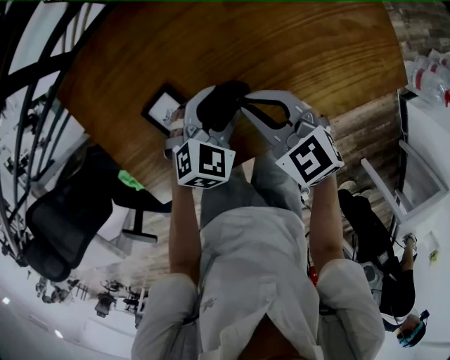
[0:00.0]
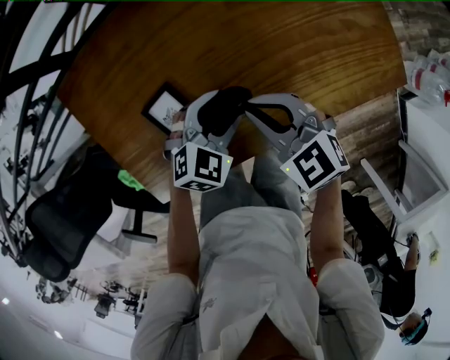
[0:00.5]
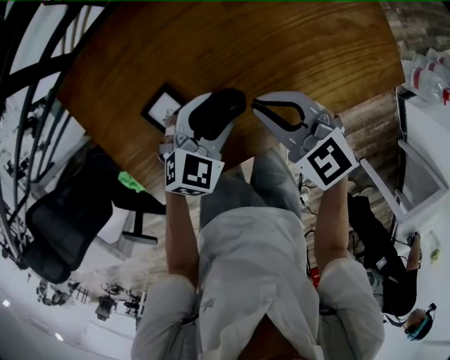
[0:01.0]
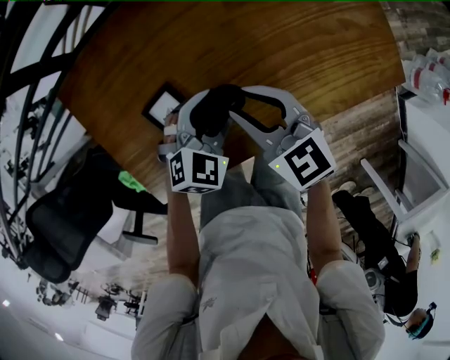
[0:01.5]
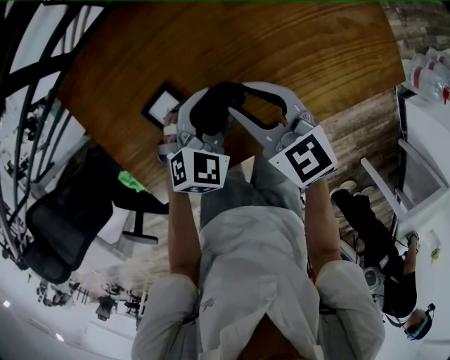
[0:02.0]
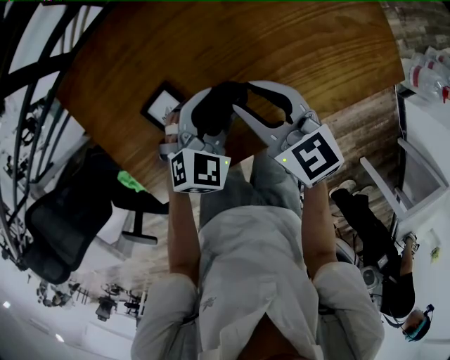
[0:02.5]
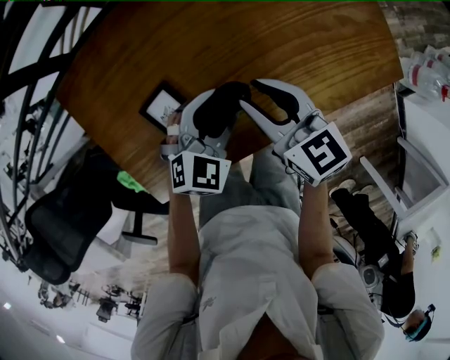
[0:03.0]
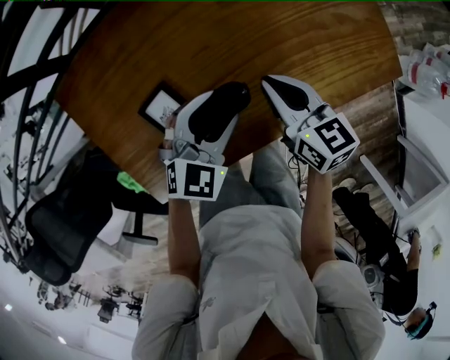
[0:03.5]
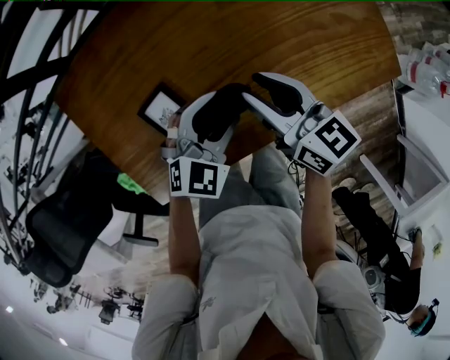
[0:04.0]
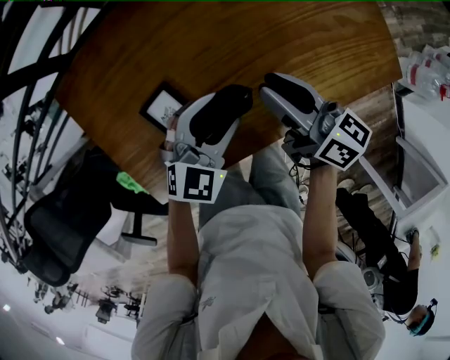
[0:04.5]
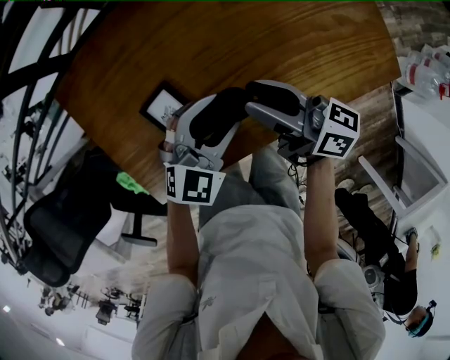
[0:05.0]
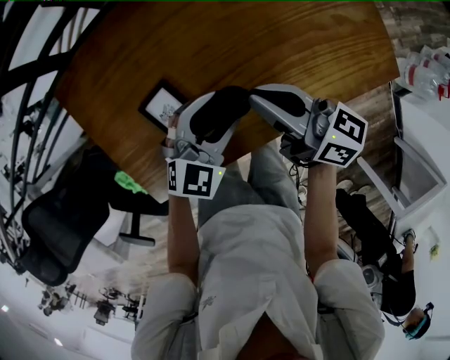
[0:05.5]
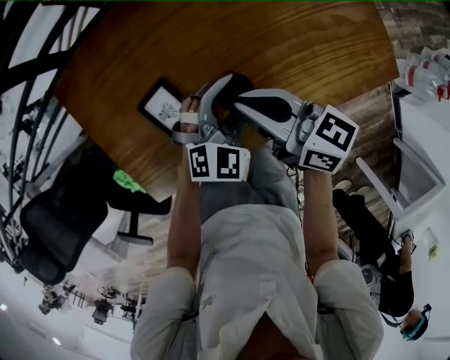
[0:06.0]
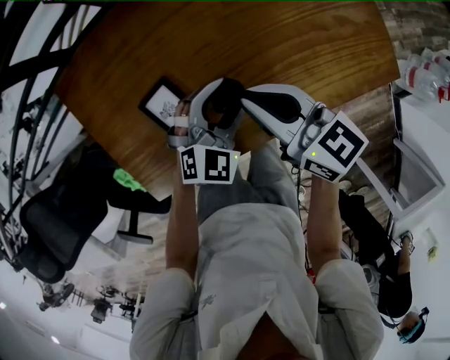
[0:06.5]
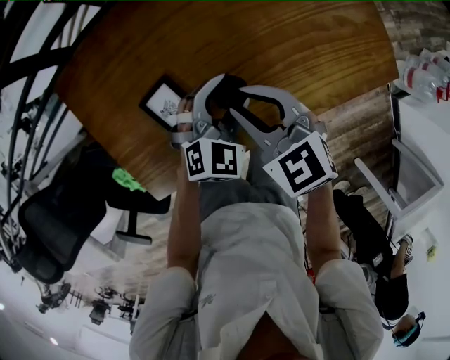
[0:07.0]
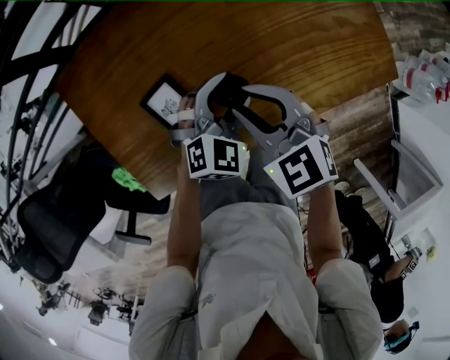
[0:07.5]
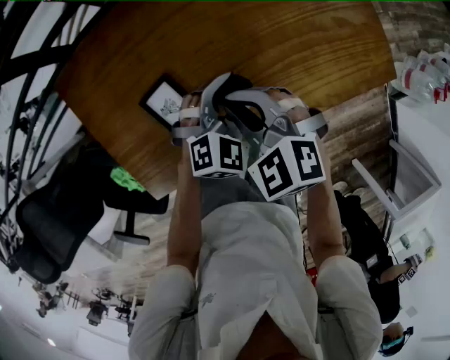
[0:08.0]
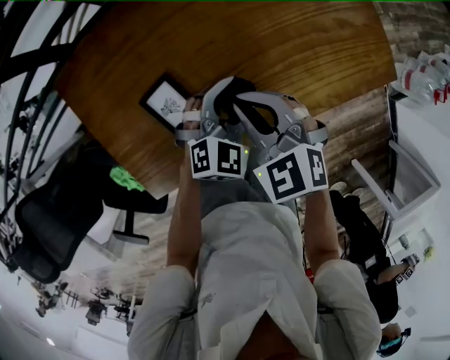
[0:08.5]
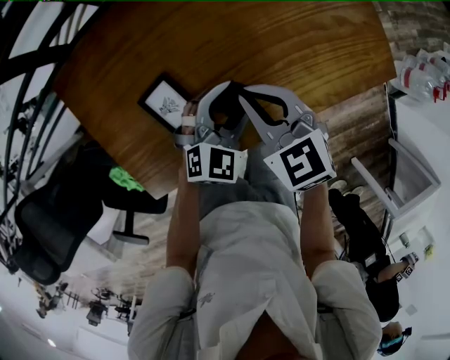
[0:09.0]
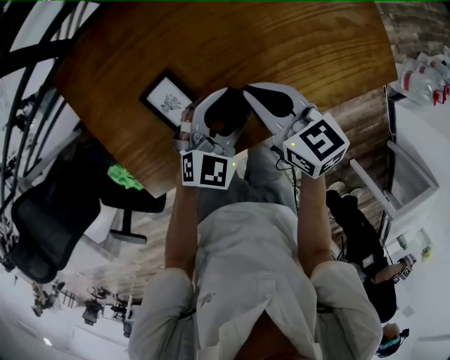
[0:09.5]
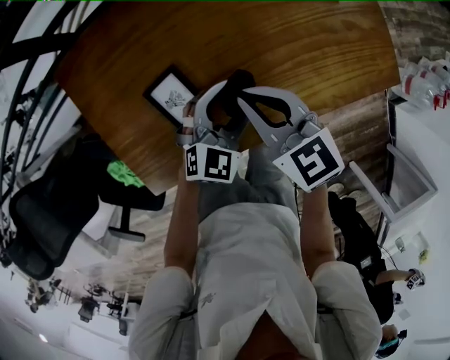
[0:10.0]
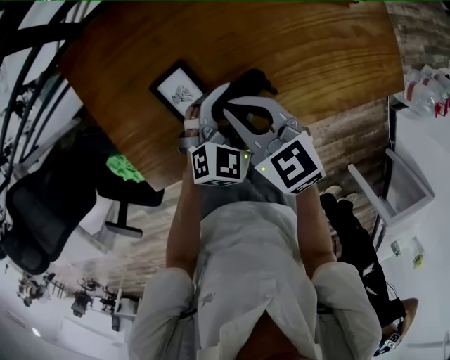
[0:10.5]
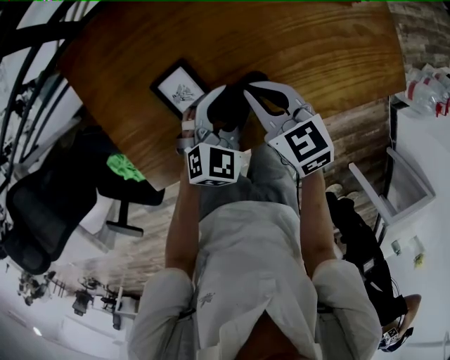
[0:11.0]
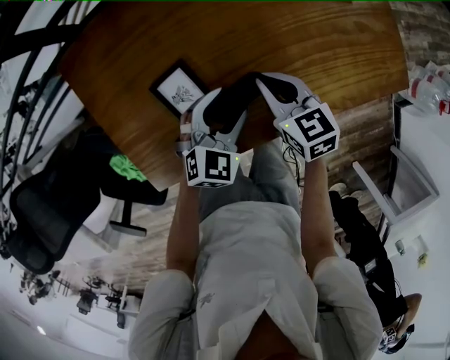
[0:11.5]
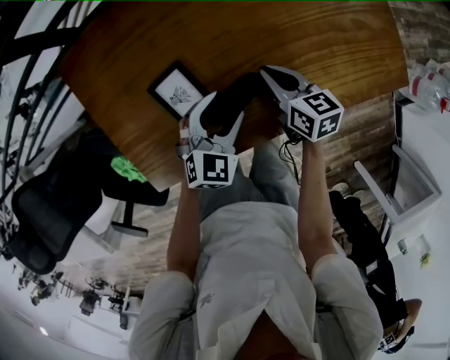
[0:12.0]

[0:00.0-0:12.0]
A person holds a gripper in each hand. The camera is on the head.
0:00.0 to 0:02.0: The right gripper opens up.
0:02.0 to 0:04.0: The right gripper rotates some 30 degrees, and closes, then opens again.
0:04.0 to 0:06.0: The right gripper moves approximately 5 cm, and closes up.
0:06.0 to 0:08.0: The right gripper rotates around the line of its fingers by roughly 60 degrees, counterclockwise from behind, and opens, then closes once more.
0:08.0 to 0:10.0: The right gripper rotates roughly 30 degrees.
0:10.0 to 0:12.0: The right gripper travels downward and to the right by about 15 cm, and turns by roughly 30 degrees. Meanwhile the left gripper moves some 5 cm.

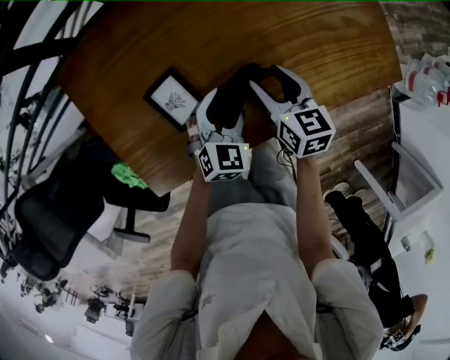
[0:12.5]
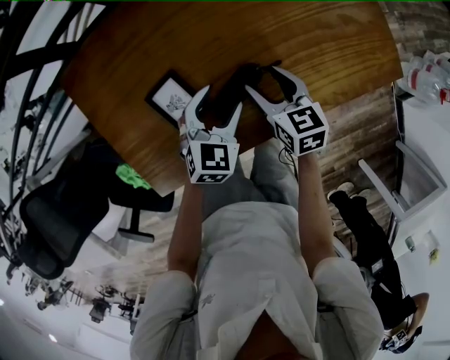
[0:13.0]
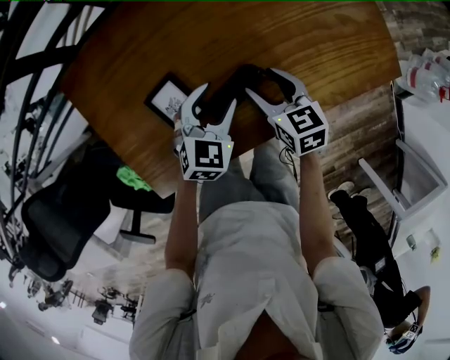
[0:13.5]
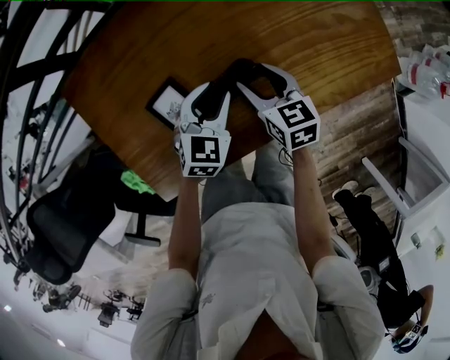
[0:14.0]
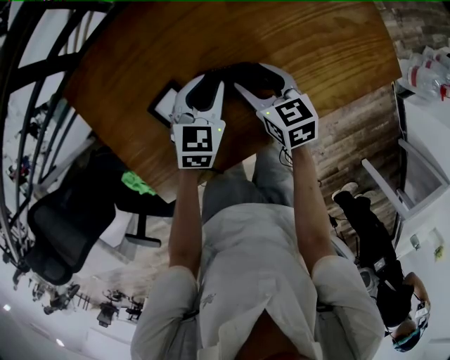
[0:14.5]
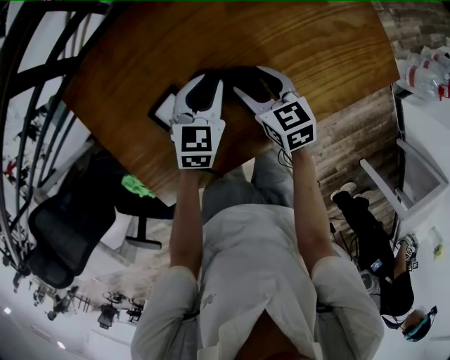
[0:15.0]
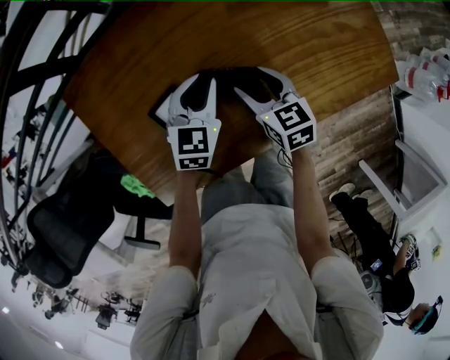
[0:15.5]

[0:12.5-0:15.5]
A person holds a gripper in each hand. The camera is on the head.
0:12.5 to 0:14.0: The left gripper closes its fingers.
0:14.0 to 0:15.5: The left gripper moves forward, roughly 5 cm.

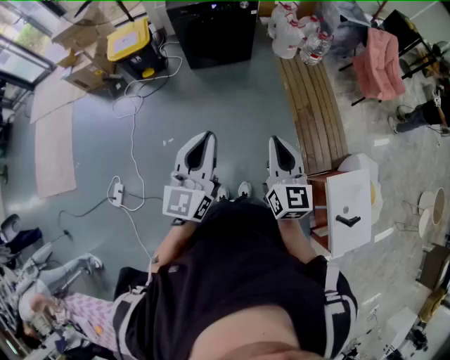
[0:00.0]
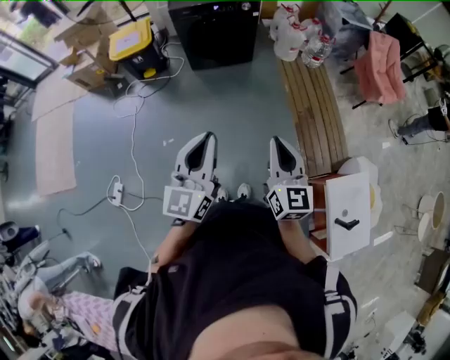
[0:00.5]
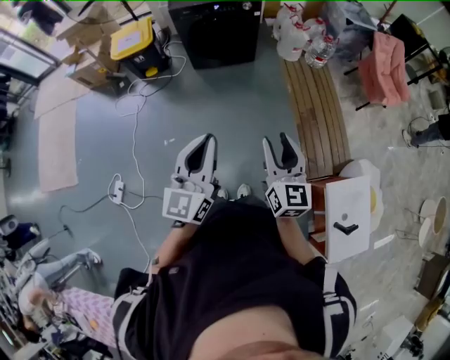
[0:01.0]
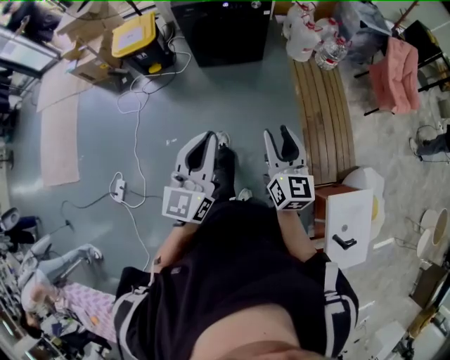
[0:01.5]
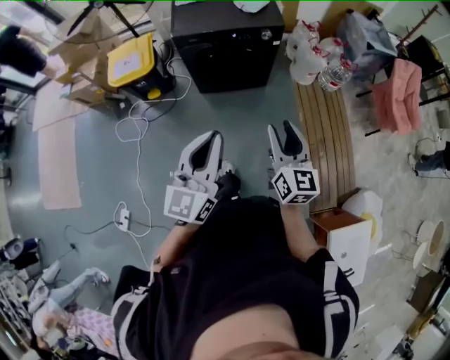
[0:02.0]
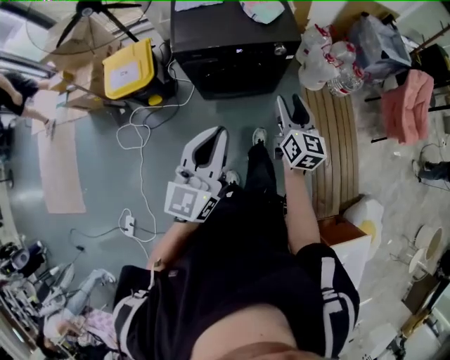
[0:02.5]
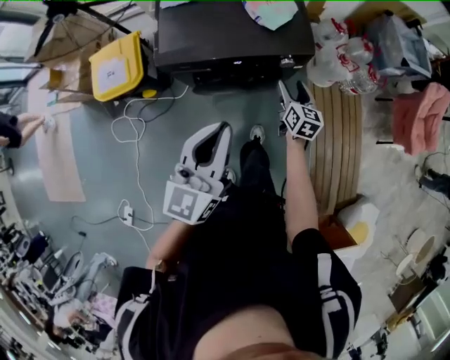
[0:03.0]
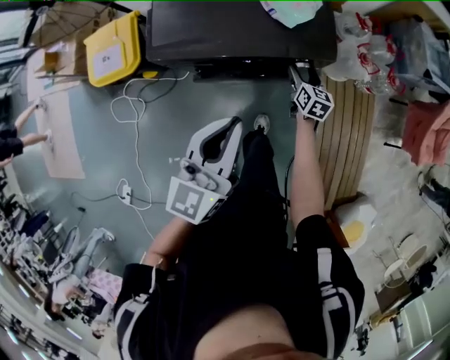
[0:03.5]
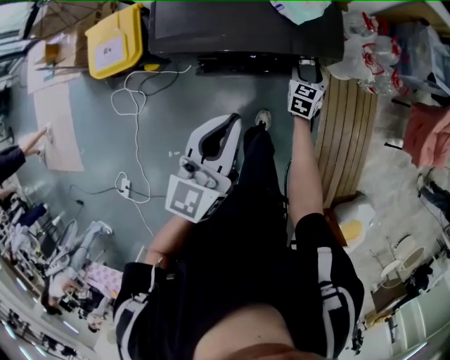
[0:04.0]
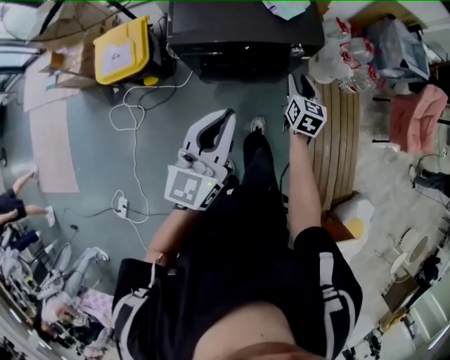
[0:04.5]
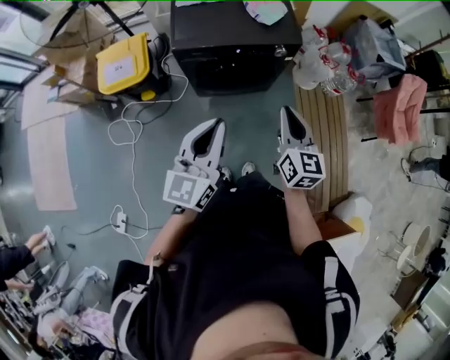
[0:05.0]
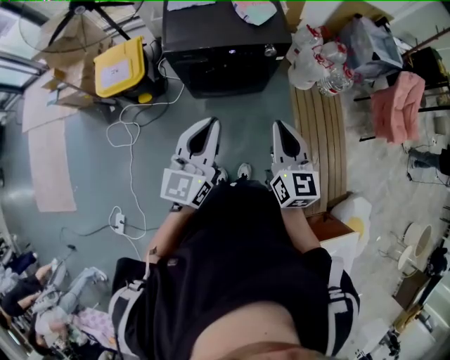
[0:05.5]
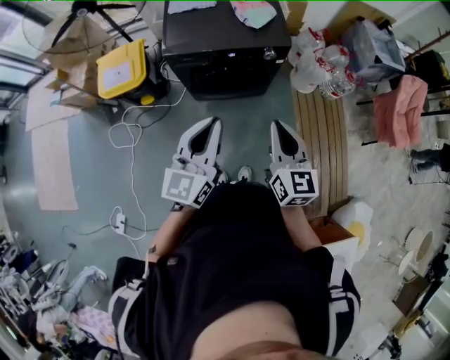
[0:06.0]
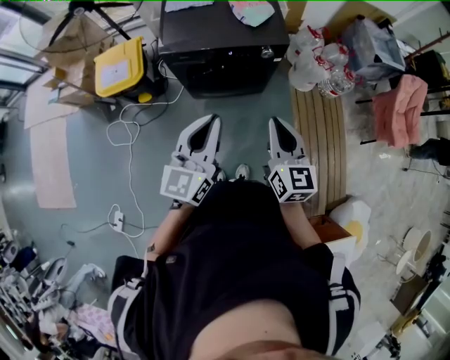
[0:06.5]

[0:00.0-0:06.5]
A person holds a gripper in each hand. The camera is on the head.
0:00.0 to 0:02.0: The two grippers travel together, forward, roughly 50 cm. The right gripper opens.
0:02.0 to 0:04.5: The two grippers travel together, forward, roughly 50 cm. The right gripper moves downward, about 25 cm, swivels about 20 degrees, and opens, then closes again.
0:04.5 to 0:06.5: The left gripper heads backward, upward and to the right, covering roughly 15 cm. Meanwhile the right gripper shifts about 35 cm backward and upward, swivels some 20 degrees, and closes its fingers.

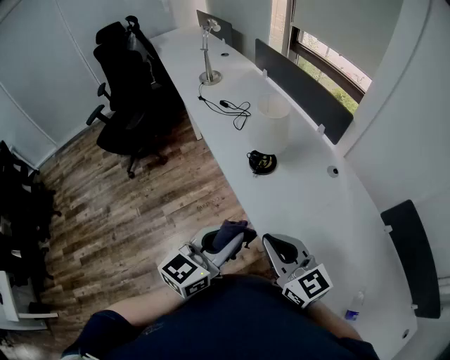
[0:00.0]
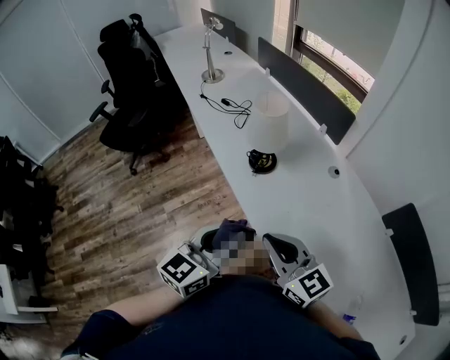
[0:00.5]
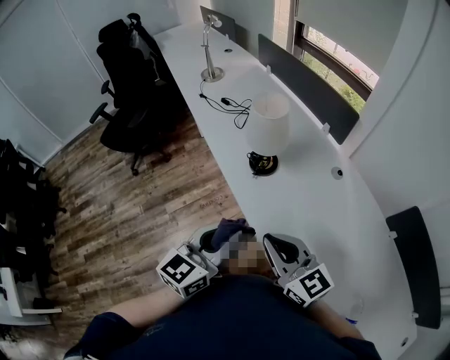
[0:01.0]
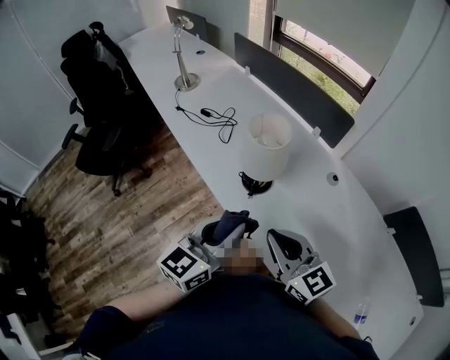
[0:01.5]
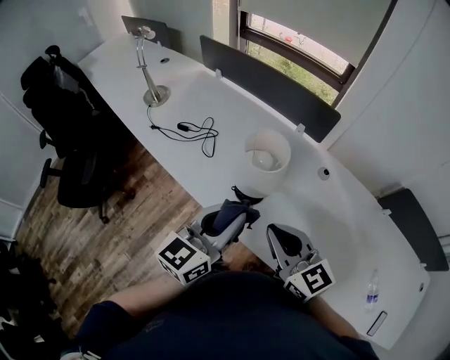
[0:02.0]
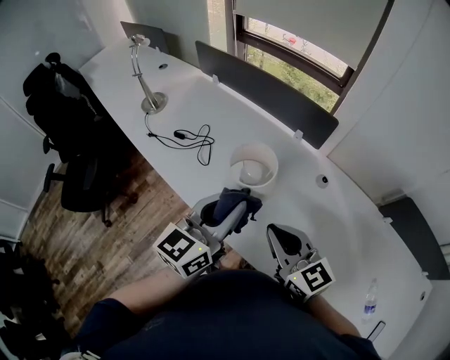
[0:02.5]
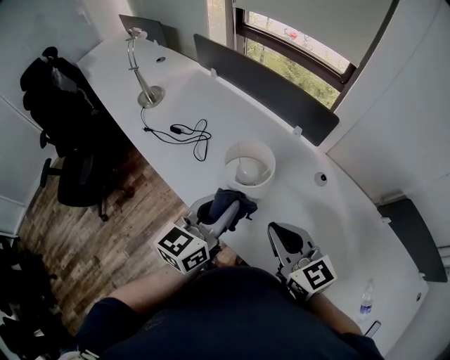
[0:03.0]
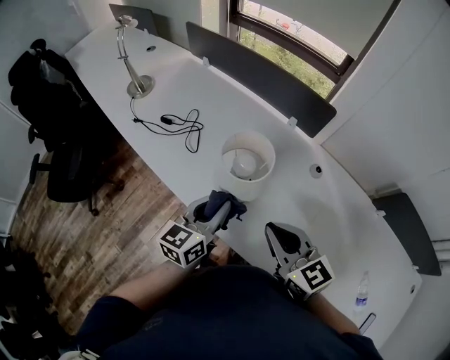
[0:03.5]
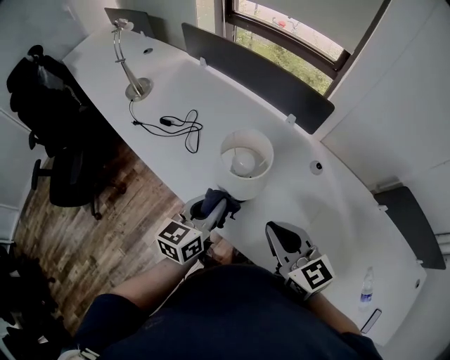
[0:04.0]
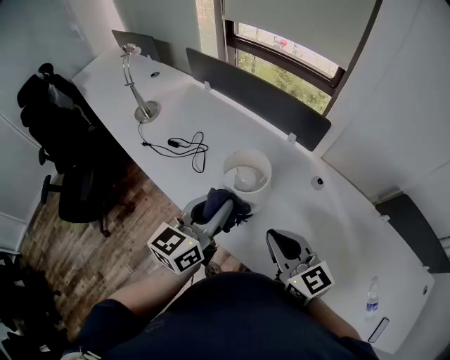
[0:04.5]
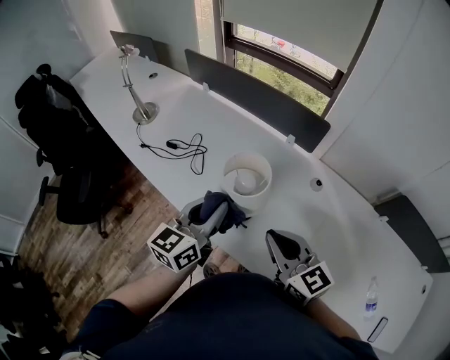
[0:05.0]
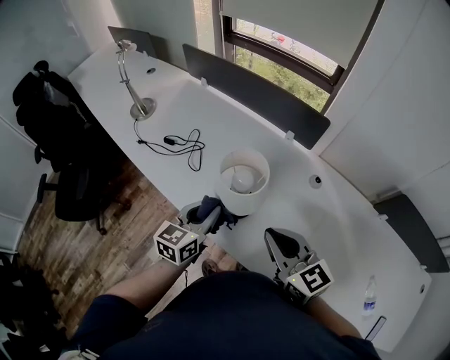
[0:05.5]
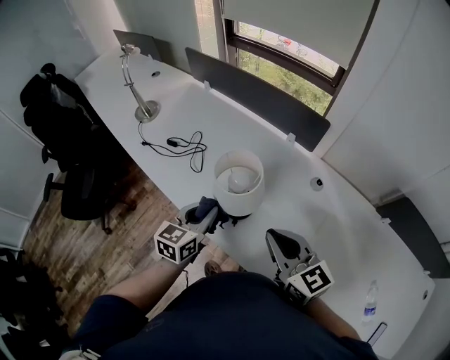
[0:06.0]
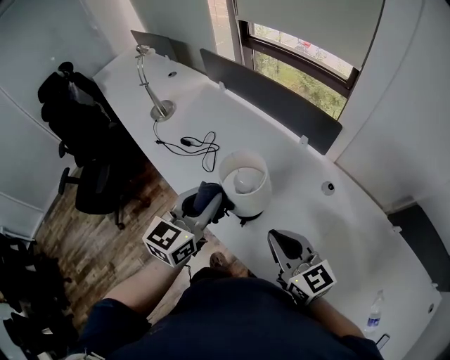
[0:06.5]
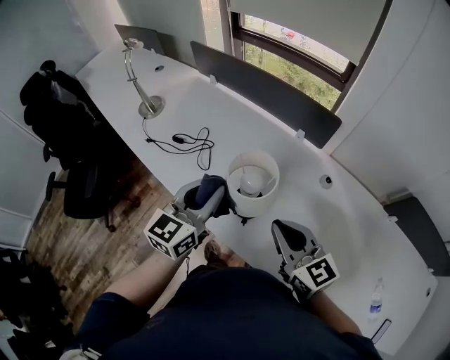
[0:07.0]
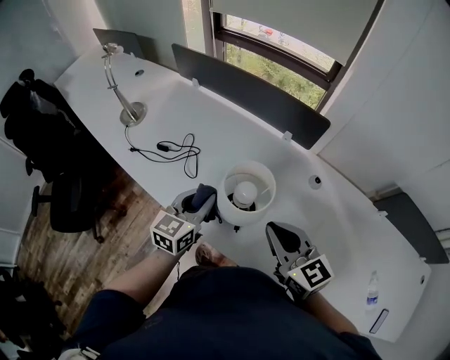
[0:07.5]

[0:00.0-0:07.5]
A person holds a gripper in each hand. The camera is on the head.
0:00.0 to 0:02.0: The grippers both shift forward by some 25 cm. The left gripper rotates about 20 degrees, while the right gripper changes its angle by approximately 20 degrees.
0:02.0 to 0:04.0: The left gripper heads downward and forward, covering some 15 cm, while the right gripper changes place by about 5 cm.
0:04.0 to 0:05.5: The left gripper travels upward and back again, roughly 10 cm each way.
0:05.5 to 0:07.5: The left gripper heads forward, covering some 5 cm, and goes upward and returns, about 10 cm each way.
